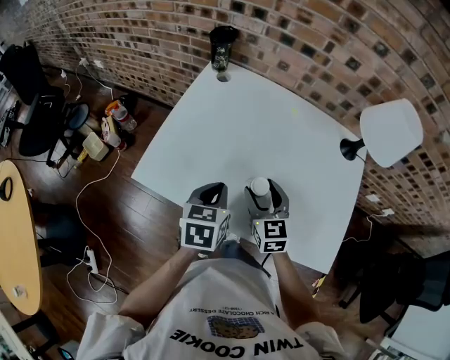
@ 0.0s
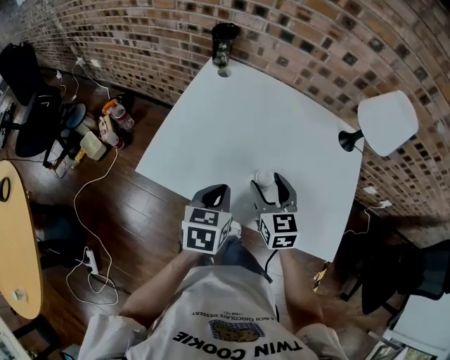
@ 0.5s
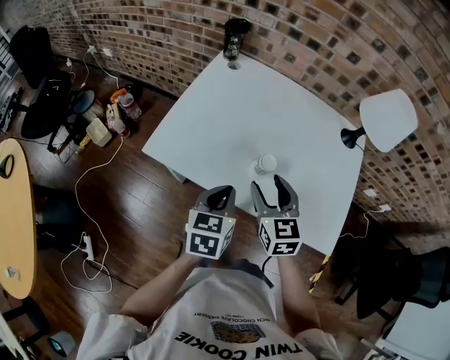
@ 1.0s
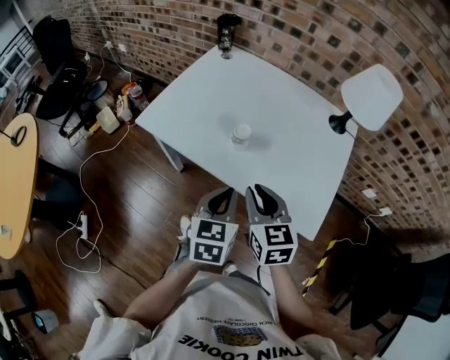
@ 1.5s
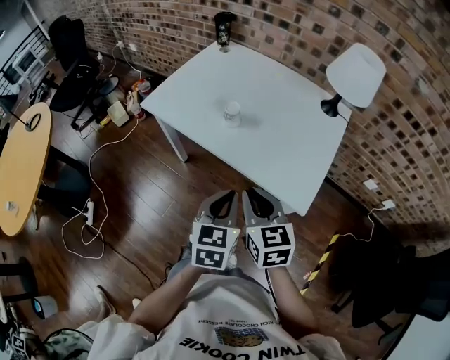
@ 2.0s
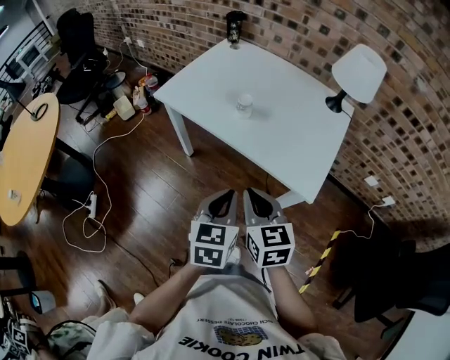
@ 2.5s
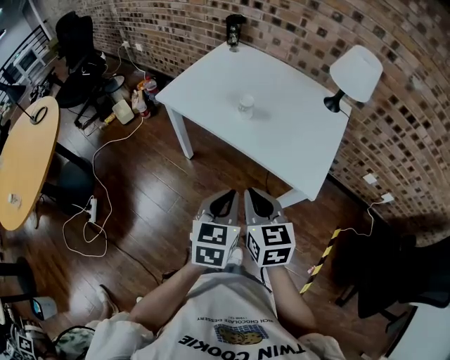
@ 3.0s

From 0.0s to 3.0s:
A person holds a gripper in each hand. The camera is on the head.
From 0.0s to 1.5s: The left gripper goes roughly 25 cm backward and to the right; the right gripper heads backward, covering about 20 cm, and closes up.
From 1.5s to 3.0s: The grippers both shift backward by about 20 cm.

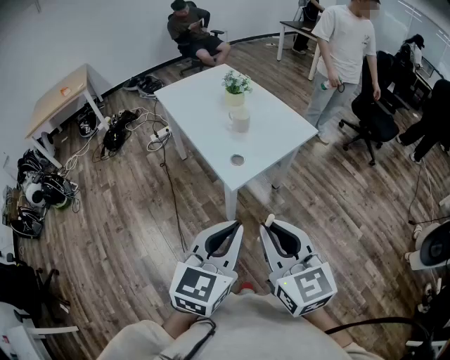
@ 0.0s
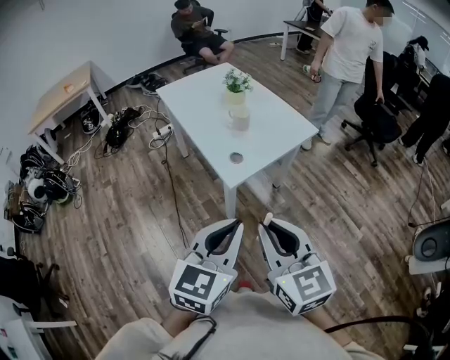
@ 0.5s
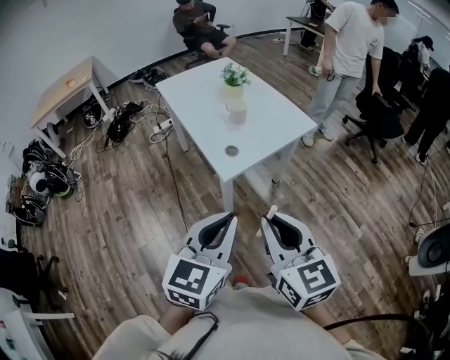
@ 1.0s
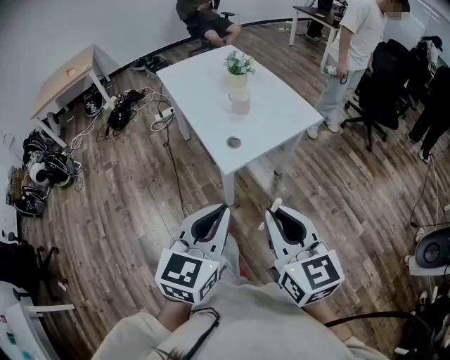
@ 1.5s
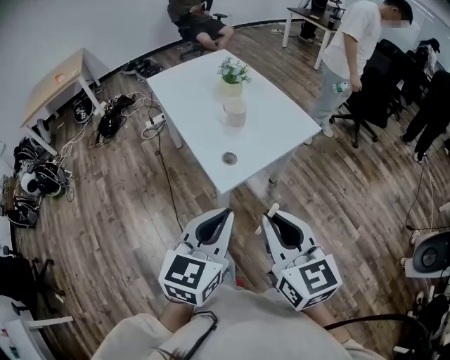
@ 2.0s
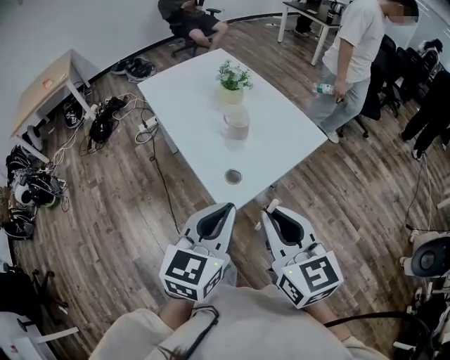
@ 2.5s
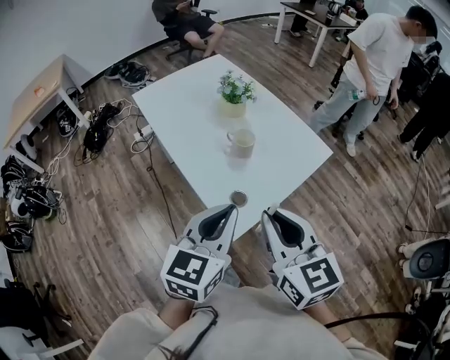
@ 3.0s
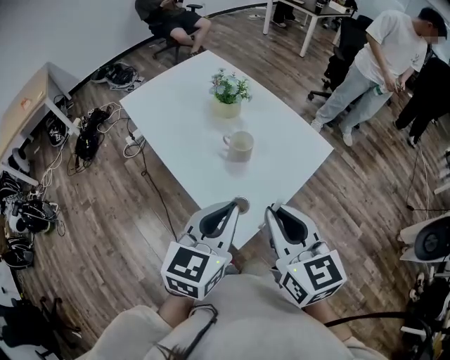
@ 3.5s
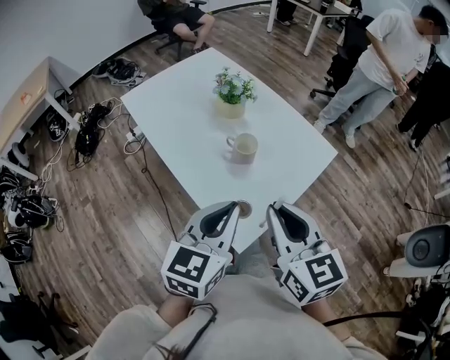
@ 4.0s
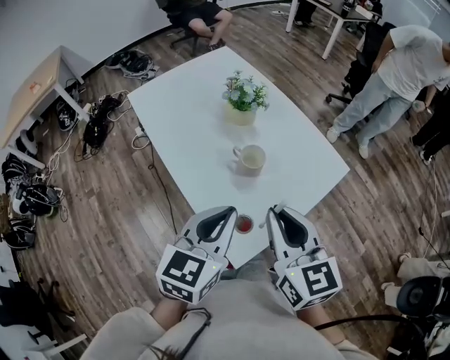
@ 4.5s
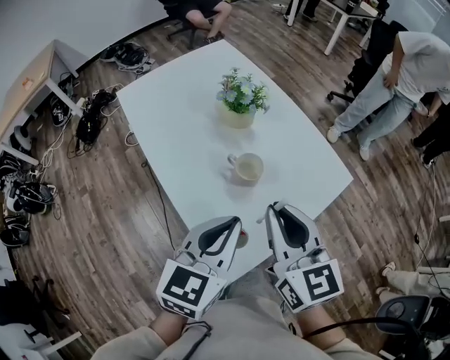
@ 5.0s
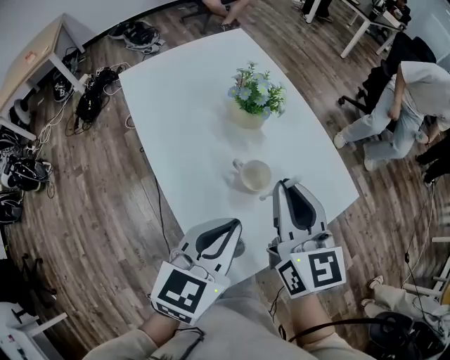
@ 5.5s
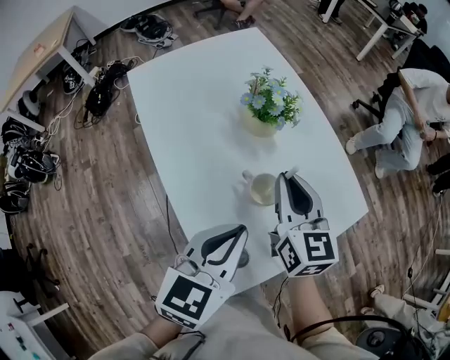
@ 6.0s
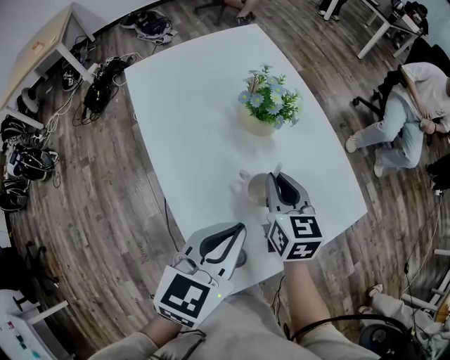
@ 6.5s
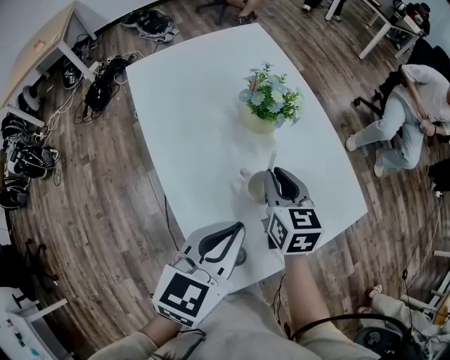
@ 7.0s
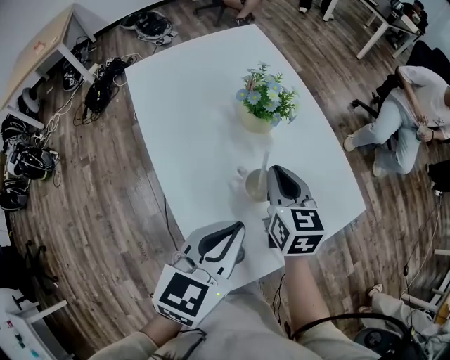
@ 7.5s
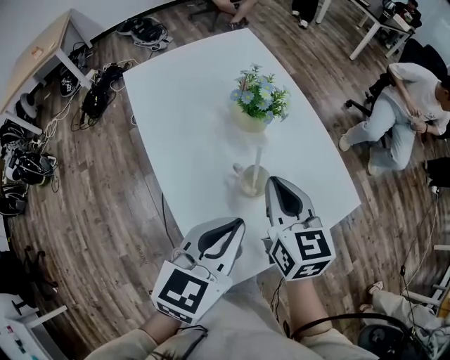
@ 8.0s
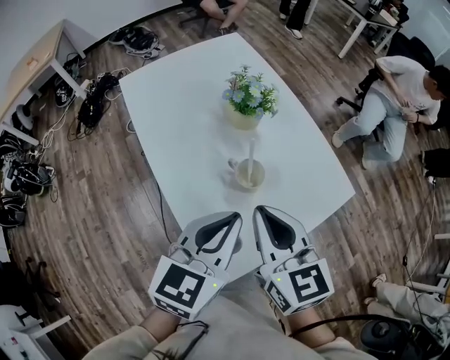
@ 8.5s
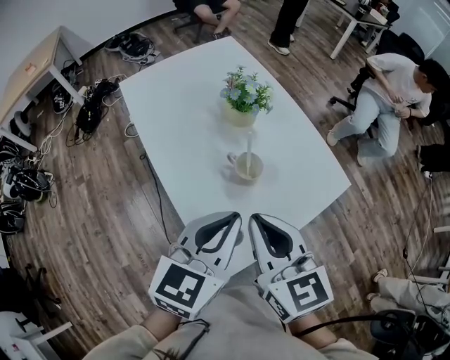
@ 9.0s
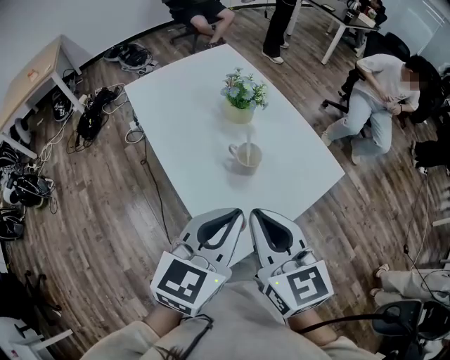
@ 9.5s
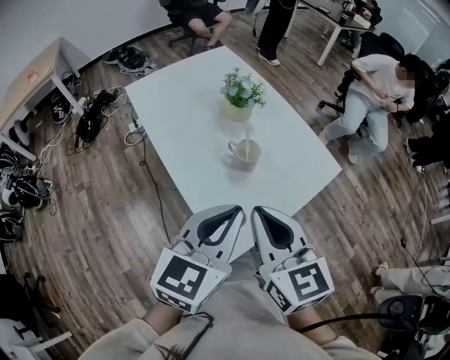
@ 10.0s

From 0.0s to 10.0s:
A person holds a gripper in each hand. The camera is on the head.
From 0.0s to 2.0s: Both grippers travel together forward, some 10 cm.
From 2.0s to 4.0s: Both grippers travel together forward, roughly 25 cm.
From 4.0s to 6.0s: The right gripper travels forward and downward by roughly 30 cm, while the left gripper travels forward and downward by roughly 15 cm.
From 6.0s to 8.0s: The right gripper moves roughly 5 cm downward and comes back.
From 8.0s to 10.0s: The right gripper moves backward and upward, some 25 cm. The left gripper travels backward and upward by approximately 15 cm.

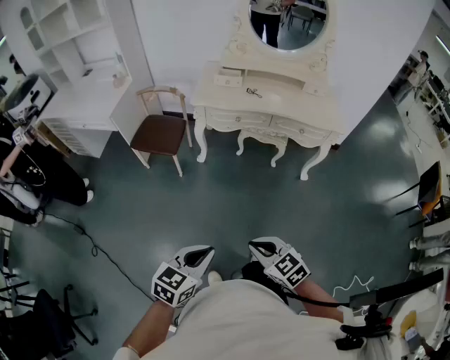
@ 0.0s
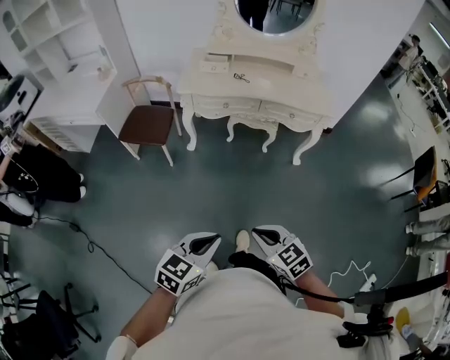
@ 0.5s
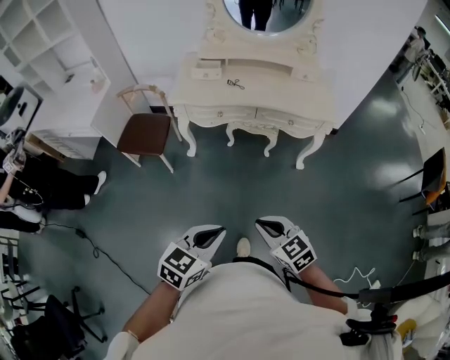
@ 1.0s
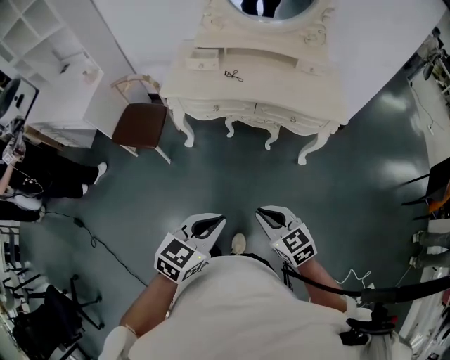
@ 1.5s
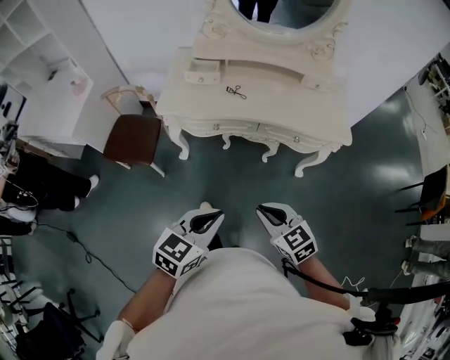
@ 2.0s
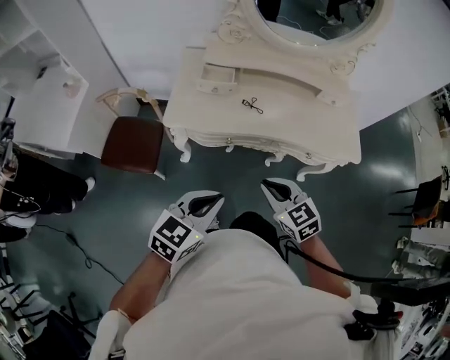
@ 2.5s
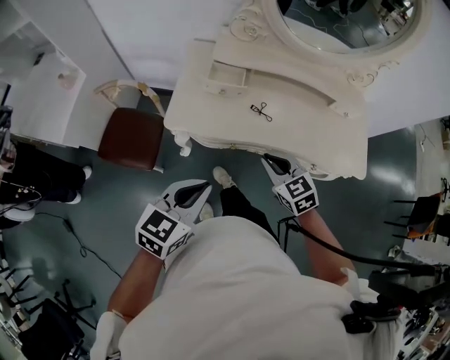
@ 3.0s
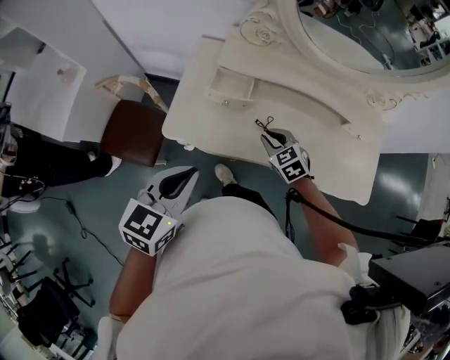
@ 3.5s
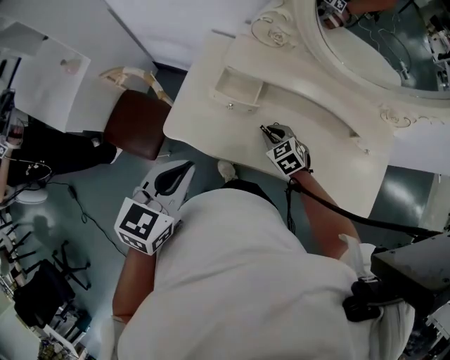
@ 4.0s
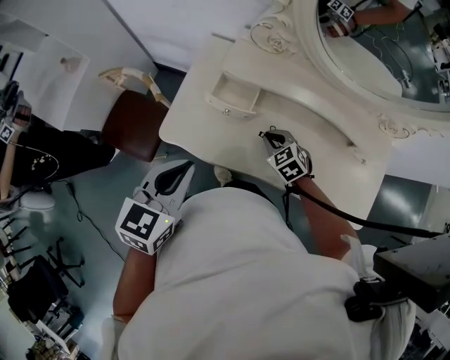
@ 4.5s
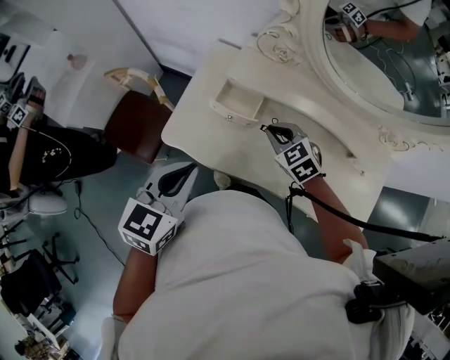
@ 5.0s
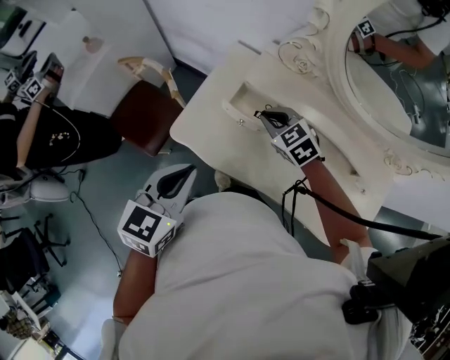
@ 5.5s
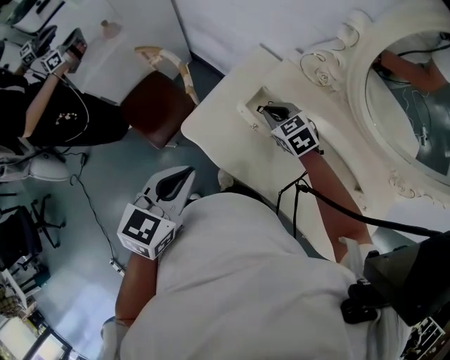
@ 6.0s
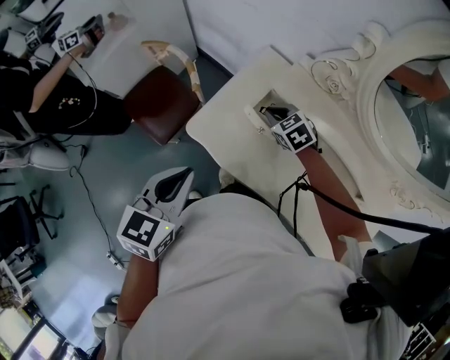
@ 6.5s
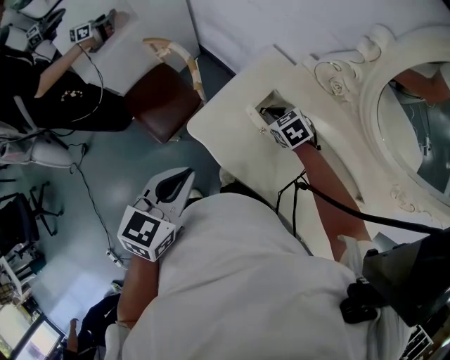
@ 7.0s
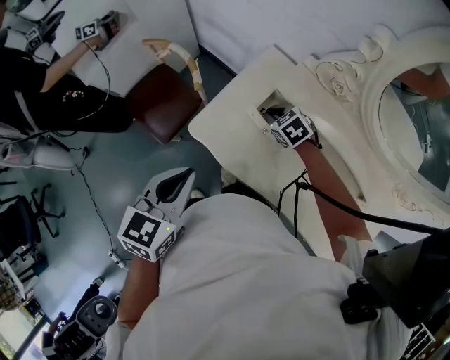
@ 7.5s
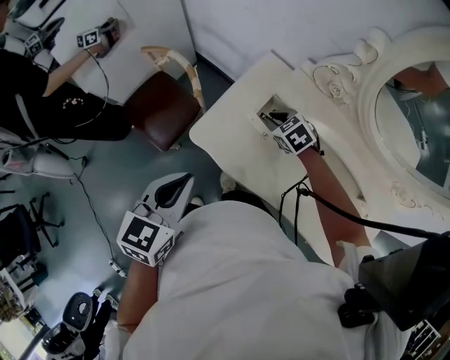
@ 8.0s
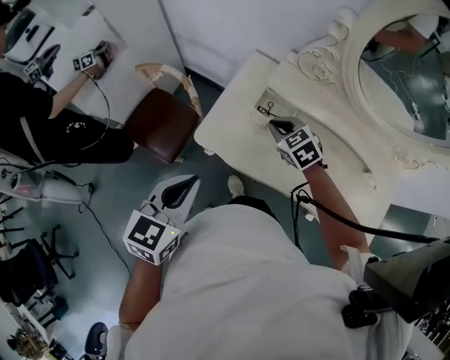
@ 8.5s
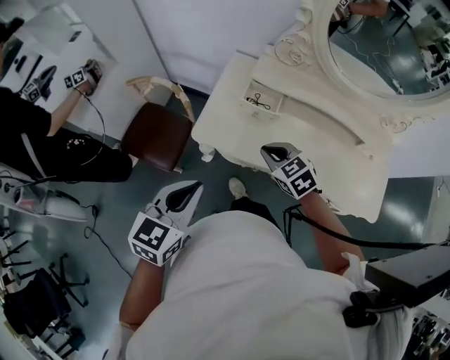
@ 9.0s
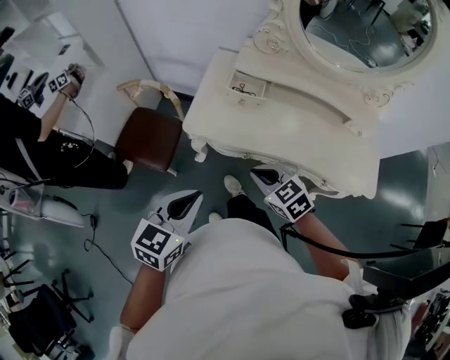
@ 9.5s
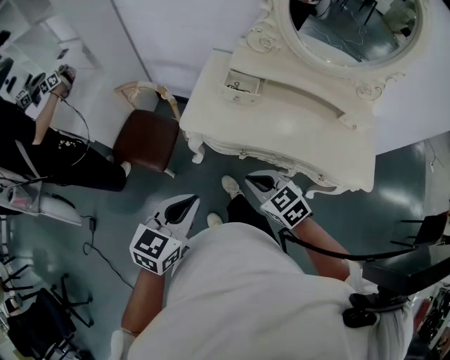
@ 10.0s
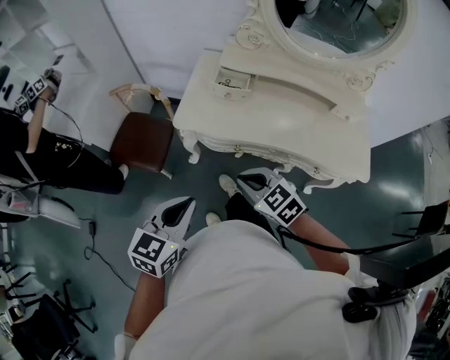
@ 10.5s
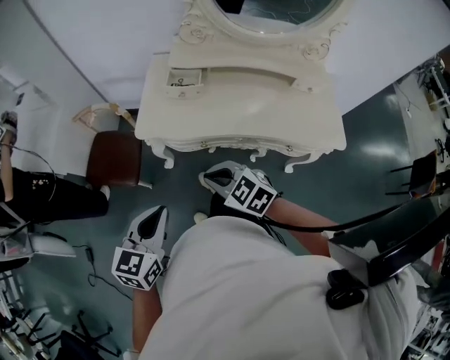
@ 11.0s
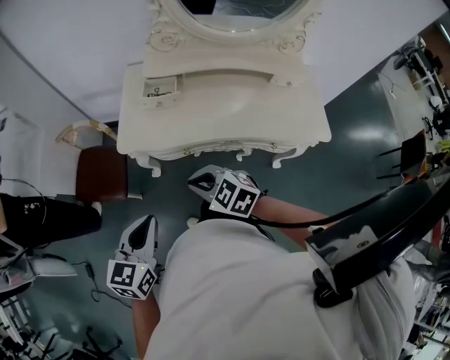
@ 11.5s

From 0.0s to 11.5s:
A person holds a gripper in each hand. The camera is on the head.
From 0.0s to 2.0s: Both grippers move forward, some 35 cm.
From 2.0s to 4.0s: Both grippers are carried forward, roughly 50 cm. The left gripper rotates approximately 20 degrees; the right gripper rotates about 30 degrees.
From 4.0s to 6.0s: The right gripper travels forward, to the left and upward by some 20 cm, and swivels approximately 20 degrees.
From 6.0s to 7.5s: The right gripper goes approximately 5 cm downward.
From 7.5s to 9.5s: The left gripper heads backward, covering some 20 cm, and swivels approximately 30 degrees, while the right gripper is displaced backward by approximately 35 cm, and changes its angle by some 30 degrees.
From 9.5s to 11.5s: The left gripper changes place by about 5 cm; the right gripper heads backward, covering about 5 cm.

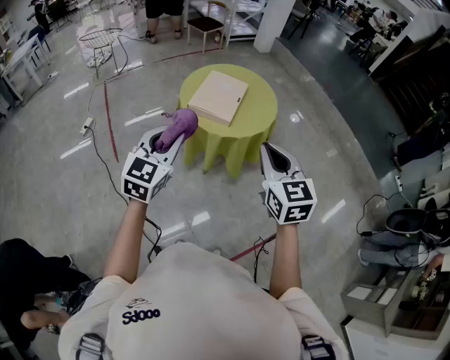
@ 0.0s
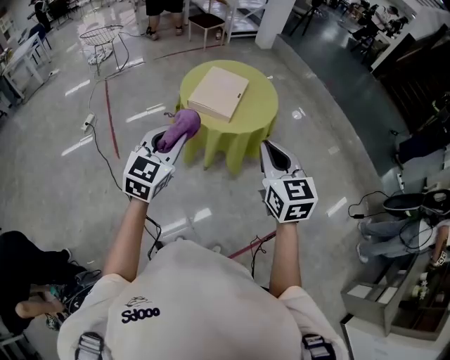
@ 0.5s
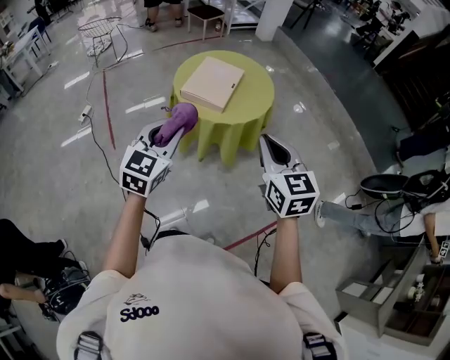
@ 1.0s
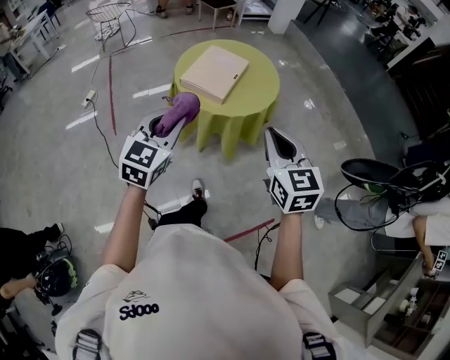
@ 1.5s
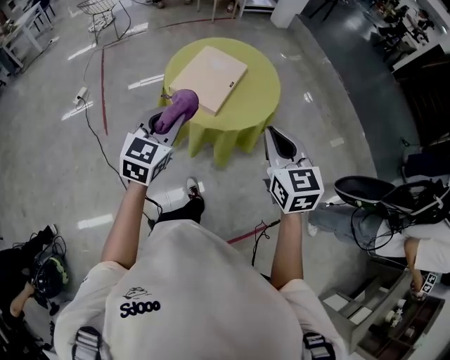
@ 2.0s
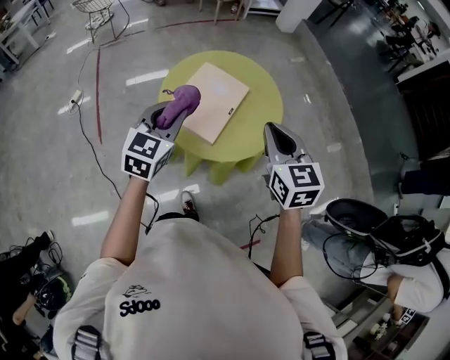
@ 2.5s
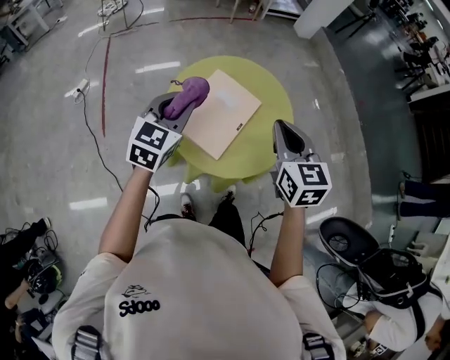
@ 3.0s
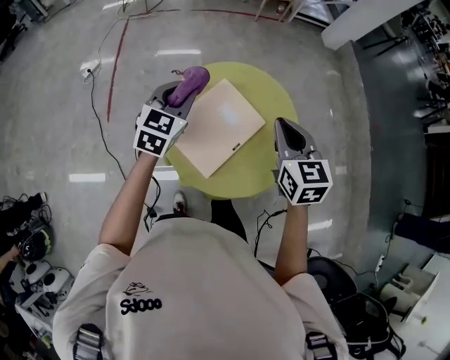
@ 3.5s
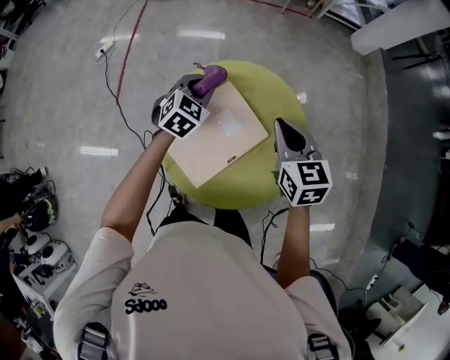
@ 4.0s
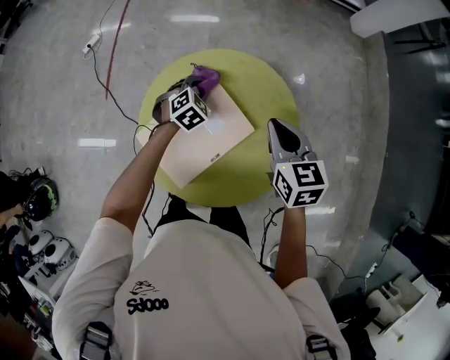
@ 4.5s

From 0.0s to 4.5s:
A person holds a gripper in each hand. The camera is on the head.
From 0.0s to 2.0s: The right gripper goes approximately 15 cm forward and to the right. The left gripper shifts some 15 cm forward, to the right and downward.
From 2.0s to 4.5s: Both grippers are carried forward, about 50 cm. The right gripper swivels approximately 30 degrees. Meanwhile the left gripper heads downward, covering approximately 30 cm, and tilts its fingers approximately 40 degrees downward.
